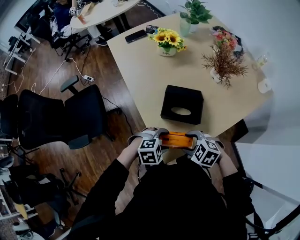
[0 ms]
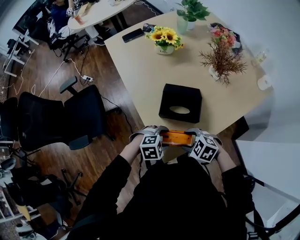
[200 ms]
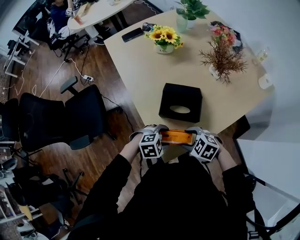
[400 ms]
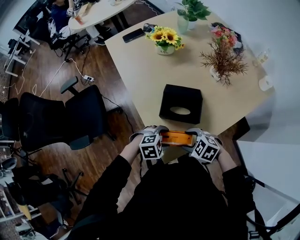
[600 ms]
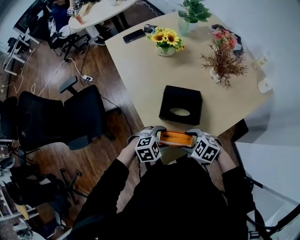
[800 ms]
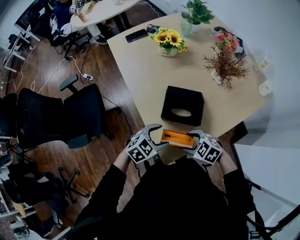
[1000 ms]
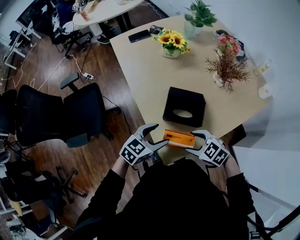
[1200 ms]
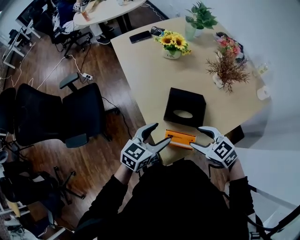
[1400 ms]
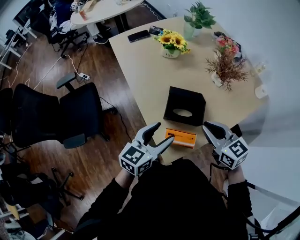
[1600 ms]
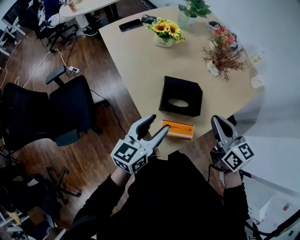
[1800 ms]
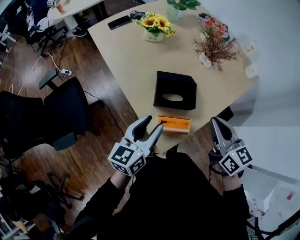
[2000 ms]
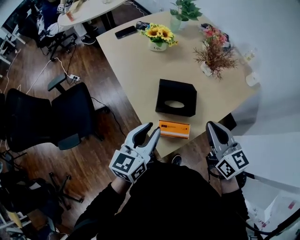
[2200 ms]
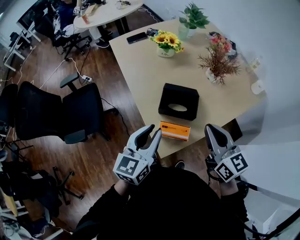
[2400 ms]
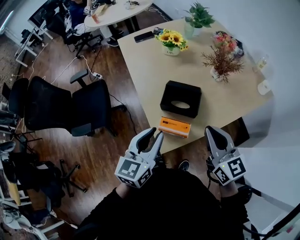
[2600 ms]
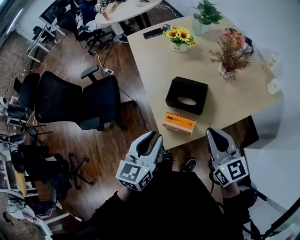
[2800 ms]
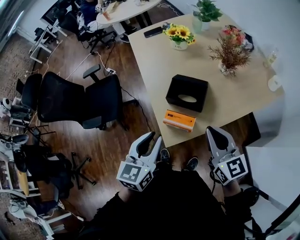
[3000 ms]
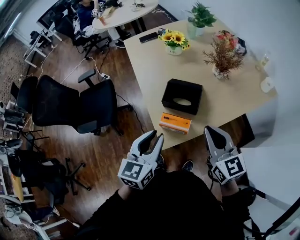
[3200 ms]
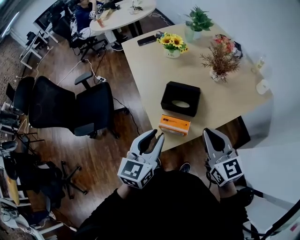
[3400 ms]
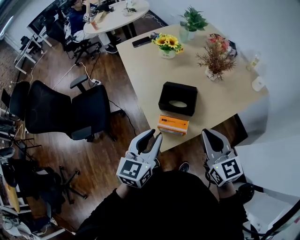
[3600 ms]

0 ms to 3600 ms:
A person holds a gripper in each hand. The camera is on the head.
0 ms to 1800 ms: The grippers both shift upward by some 20 cm. The right gripper angles its fingers upward, by roughly 40 degrees, and closes. The left gripper tilts its fingers roughly 50 degrees upward.
1800 ms to 3600 ms: The left gripper is displaced backward and upward by roughly 15 cm, turns by some 20 degrees, and closes. Meanwhile the right gripper is displaced backward by roughly 10 cm.

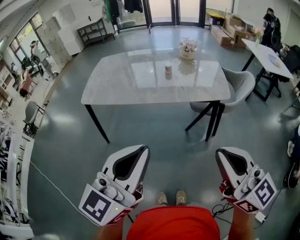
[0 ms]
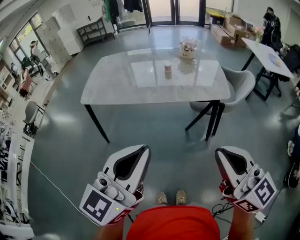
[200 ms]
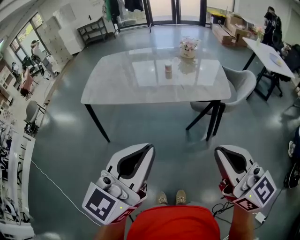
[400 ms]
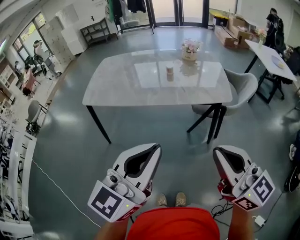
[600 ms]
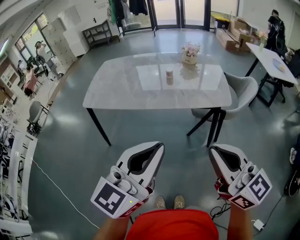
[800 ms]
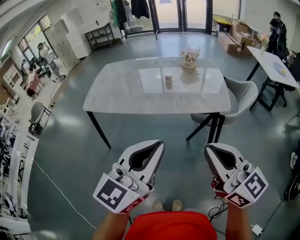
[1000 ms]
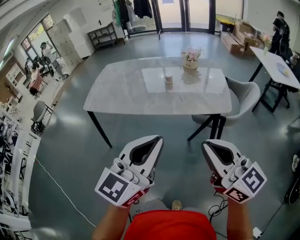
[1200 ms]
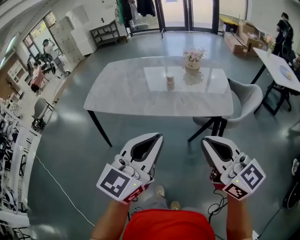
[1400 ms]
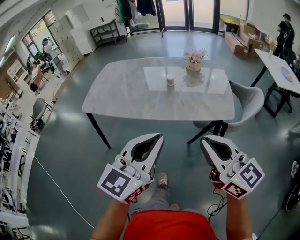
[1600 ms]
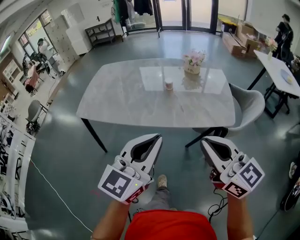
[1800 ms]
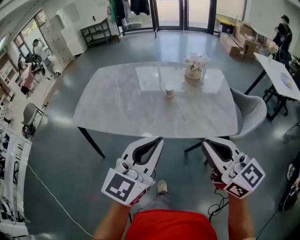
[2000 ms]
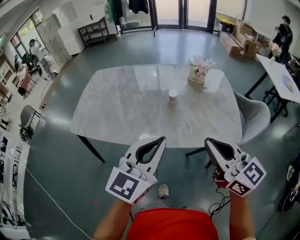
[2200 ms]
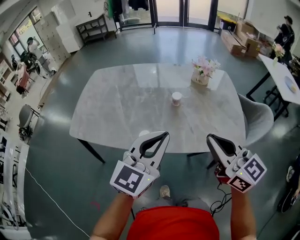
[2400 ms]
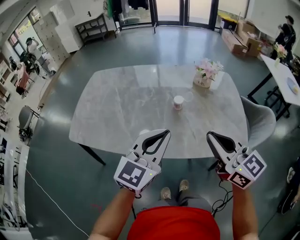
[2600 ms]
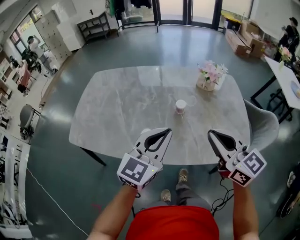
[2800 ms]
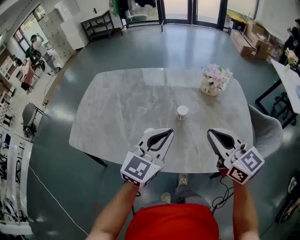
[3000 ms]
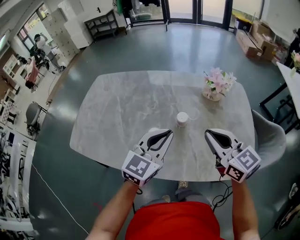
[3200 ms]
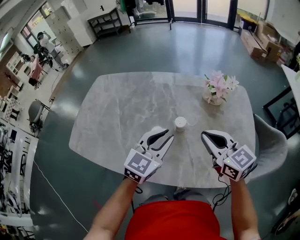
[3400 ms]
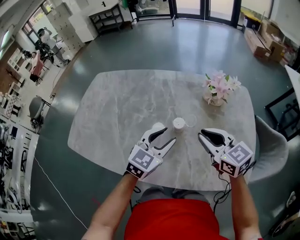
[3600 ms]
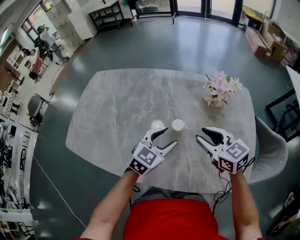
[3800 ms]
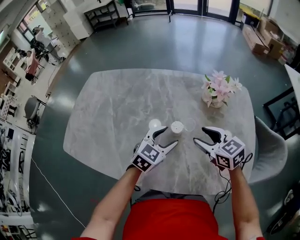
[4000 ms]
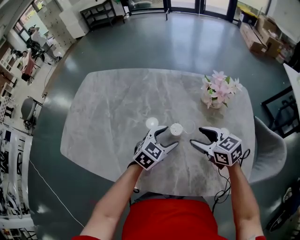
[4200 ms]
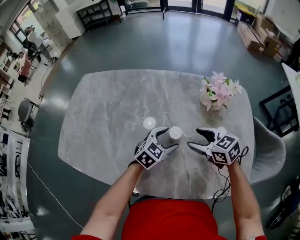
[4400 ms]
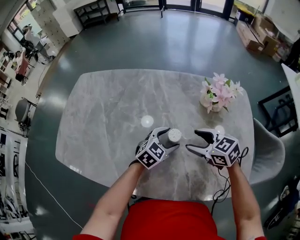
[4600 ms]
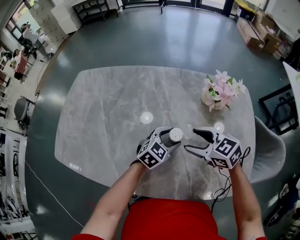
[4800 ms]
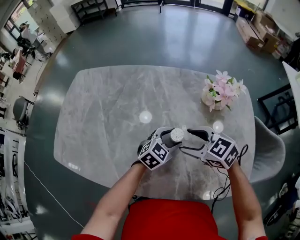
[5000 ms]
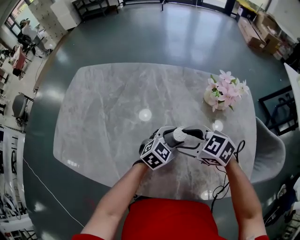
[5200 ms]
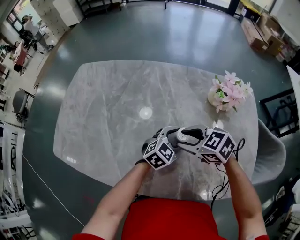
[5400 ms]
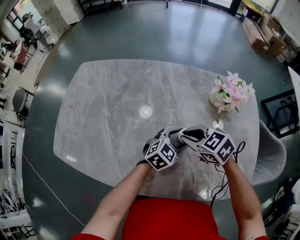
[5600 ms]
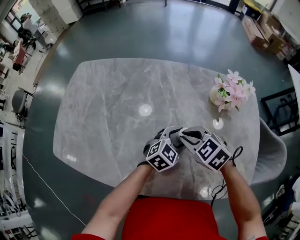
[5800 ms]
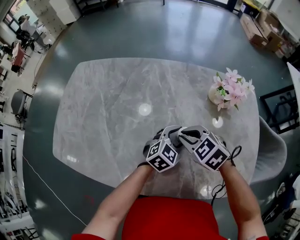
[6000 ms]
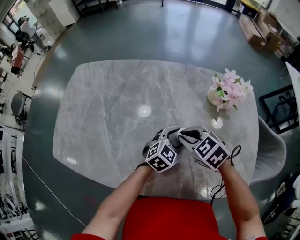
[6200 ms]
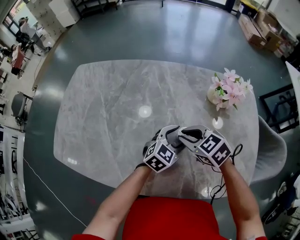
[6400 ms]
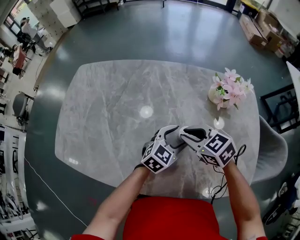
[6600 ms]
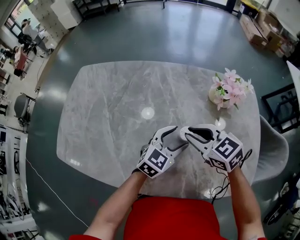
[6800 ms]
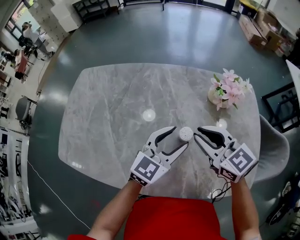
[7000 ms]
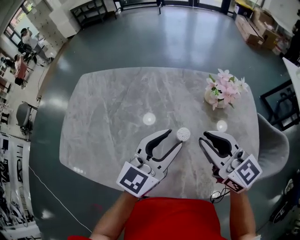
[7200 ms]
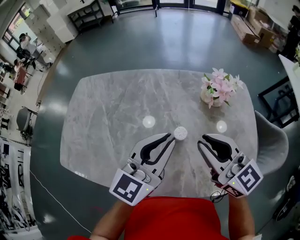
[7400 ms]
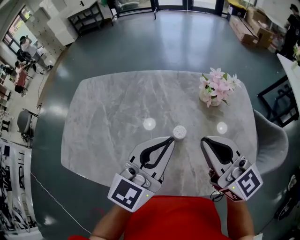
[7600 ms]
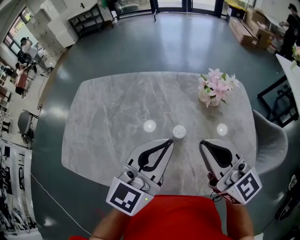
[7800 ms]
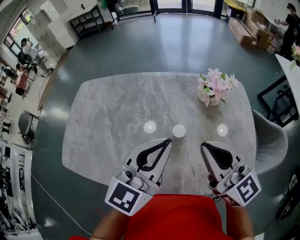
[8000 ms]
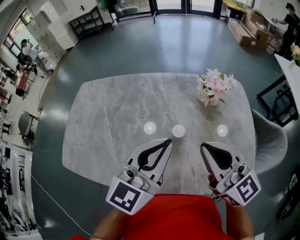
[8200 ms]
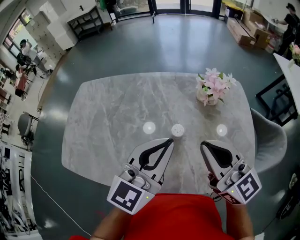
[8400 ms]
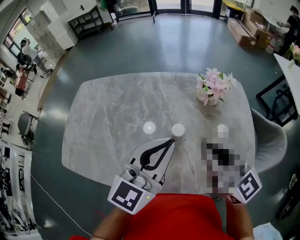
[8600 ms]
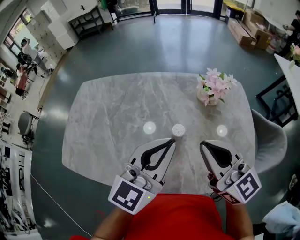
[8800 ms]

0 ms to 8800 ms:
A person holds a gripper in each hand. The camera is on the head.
0 ms to 1400 ms: The left gripper travels forward and to the right by about 15 cm, while the right gripper is displaced forward by approximately 10 cm.
1400 ms to 3000 ms: Both grippers are carried forward, some 40 cm.
3000 ms to 4400 ms: Both grippers travel together downward and forward, roughly 25 cm. The right gripper rotates roughly 30 degrees, and opens, while the left gripper tilts its fingers roughly 30 degrees downward, and opens up.
4400 ms to 5800 ms: The right gripper changes place by some 10 cm, changes its angle by some 20 degrees, and closes its fingers.
5800 ms to 7400 ms: Both grippers move upward, approximately 20 cm. The left gripper tips its fingers upward by roughly 30 degrees, and closes its fingers. The right gripper tips its fingers upward by some 50 degrees.
7400 ms to 8800 ms: The right gripper shifts by approximately 5 cm; the left gripper ends up about 5 cm from where it was.

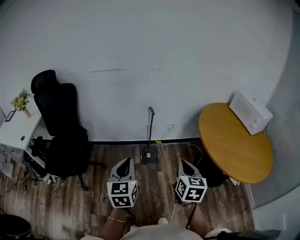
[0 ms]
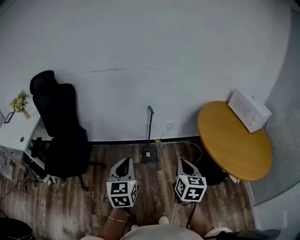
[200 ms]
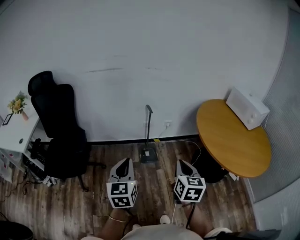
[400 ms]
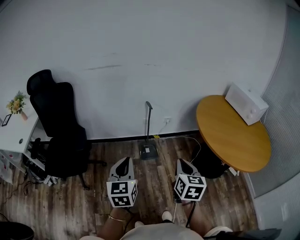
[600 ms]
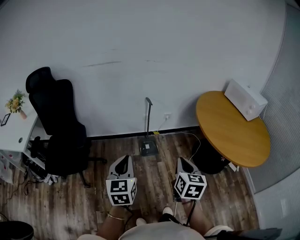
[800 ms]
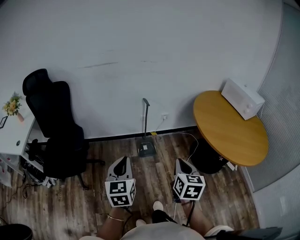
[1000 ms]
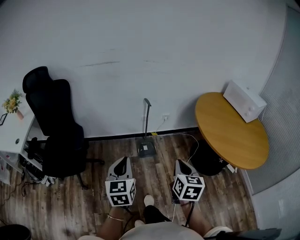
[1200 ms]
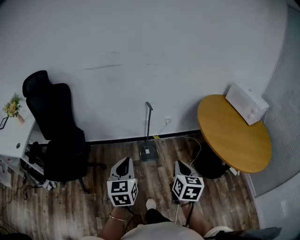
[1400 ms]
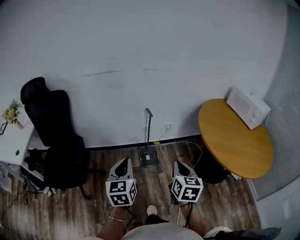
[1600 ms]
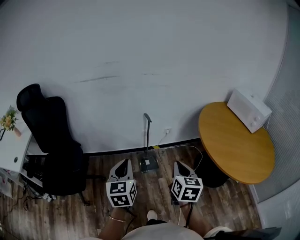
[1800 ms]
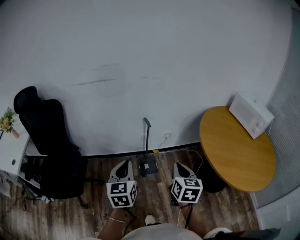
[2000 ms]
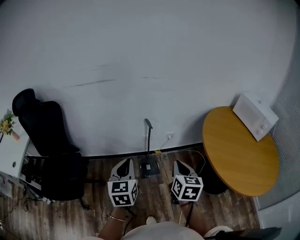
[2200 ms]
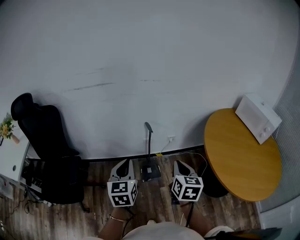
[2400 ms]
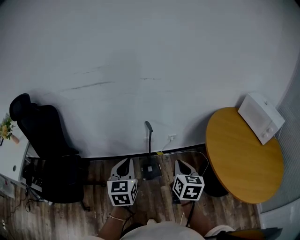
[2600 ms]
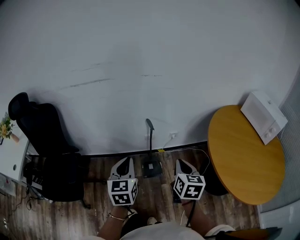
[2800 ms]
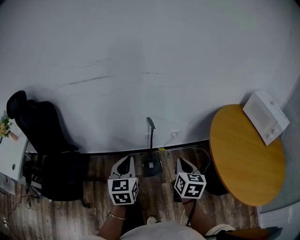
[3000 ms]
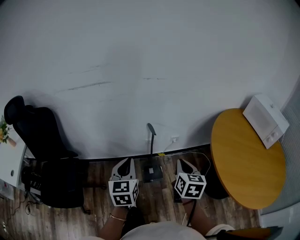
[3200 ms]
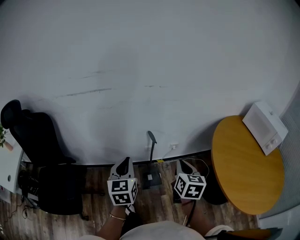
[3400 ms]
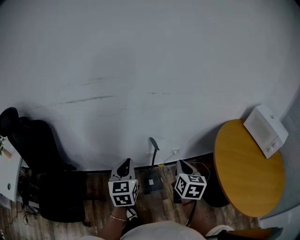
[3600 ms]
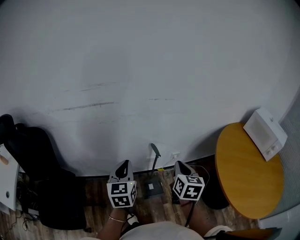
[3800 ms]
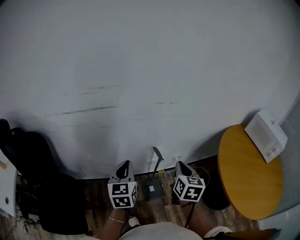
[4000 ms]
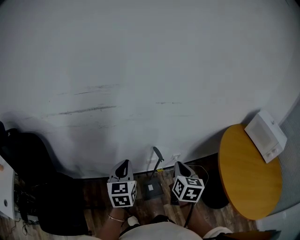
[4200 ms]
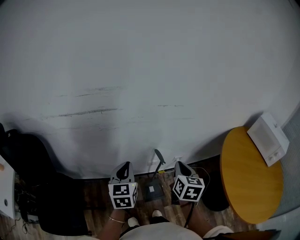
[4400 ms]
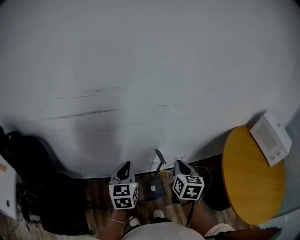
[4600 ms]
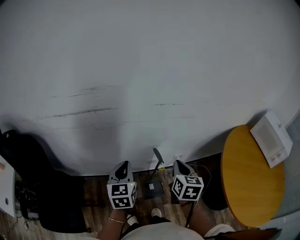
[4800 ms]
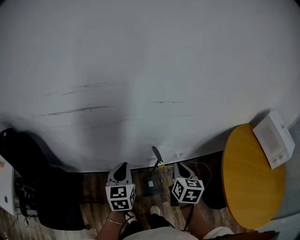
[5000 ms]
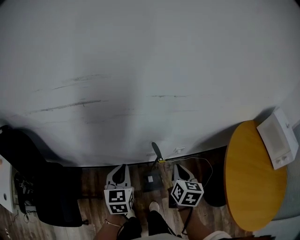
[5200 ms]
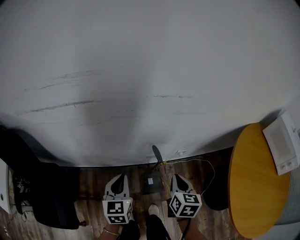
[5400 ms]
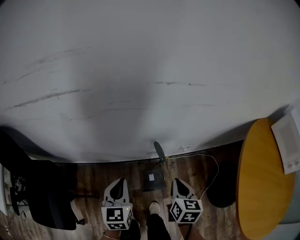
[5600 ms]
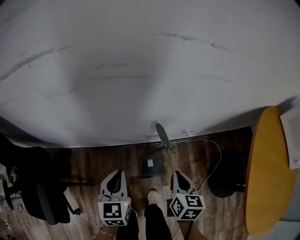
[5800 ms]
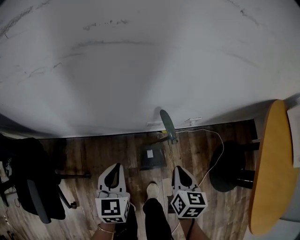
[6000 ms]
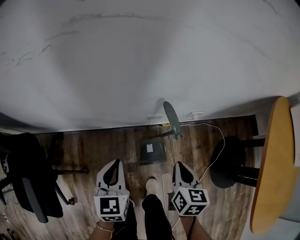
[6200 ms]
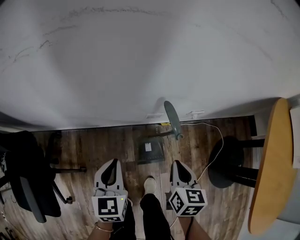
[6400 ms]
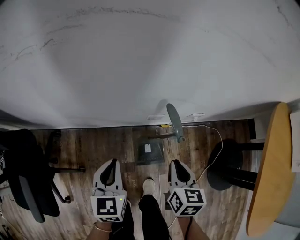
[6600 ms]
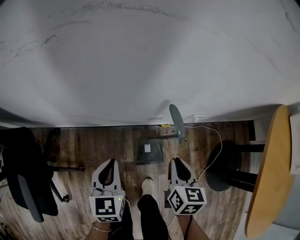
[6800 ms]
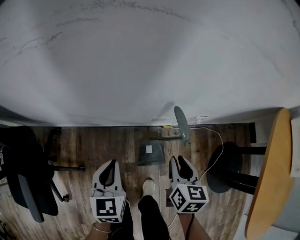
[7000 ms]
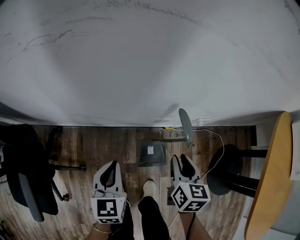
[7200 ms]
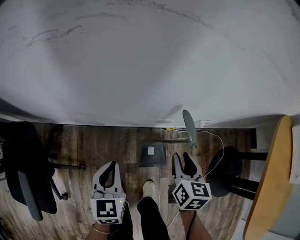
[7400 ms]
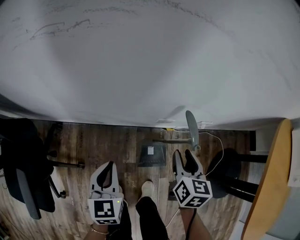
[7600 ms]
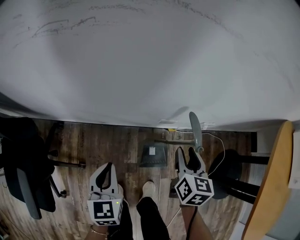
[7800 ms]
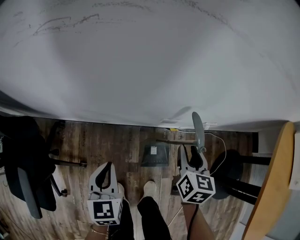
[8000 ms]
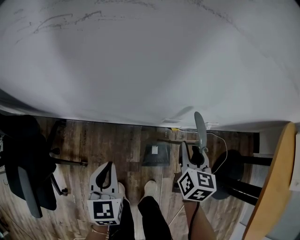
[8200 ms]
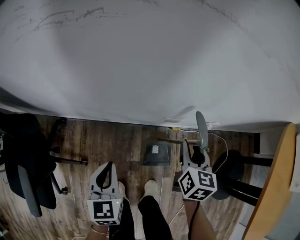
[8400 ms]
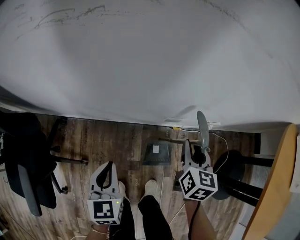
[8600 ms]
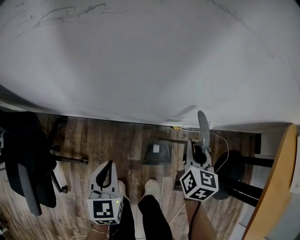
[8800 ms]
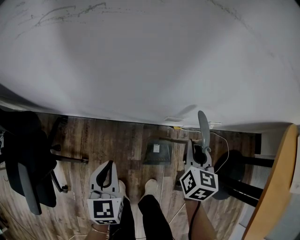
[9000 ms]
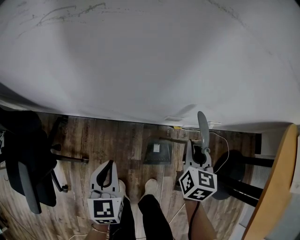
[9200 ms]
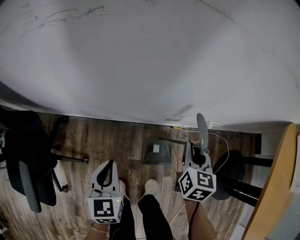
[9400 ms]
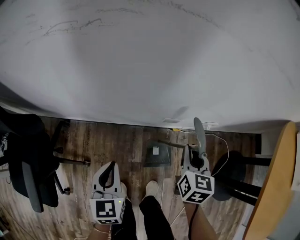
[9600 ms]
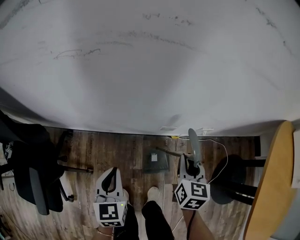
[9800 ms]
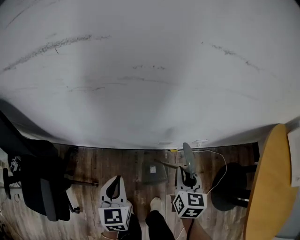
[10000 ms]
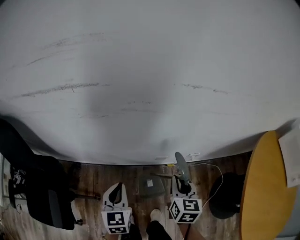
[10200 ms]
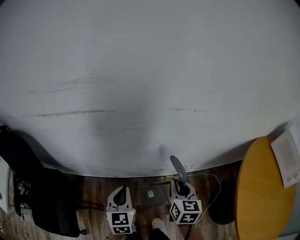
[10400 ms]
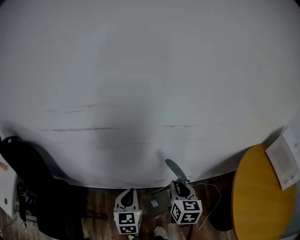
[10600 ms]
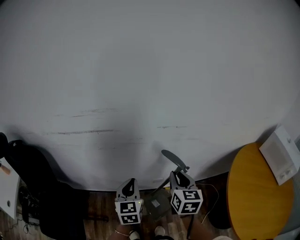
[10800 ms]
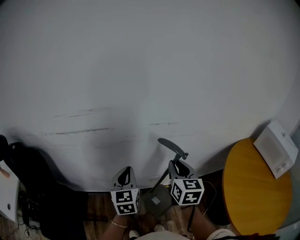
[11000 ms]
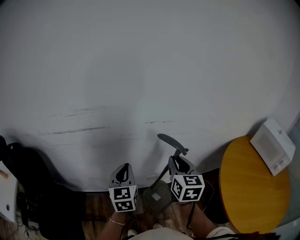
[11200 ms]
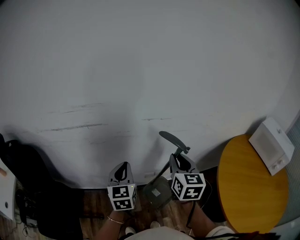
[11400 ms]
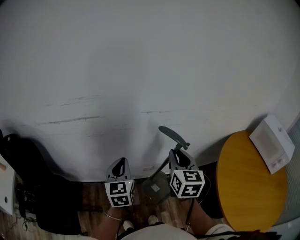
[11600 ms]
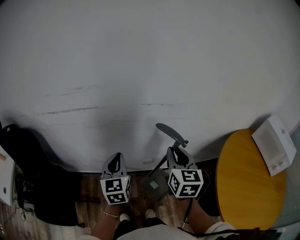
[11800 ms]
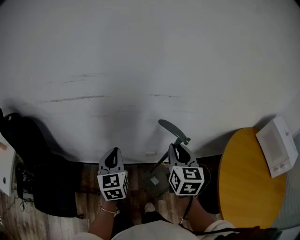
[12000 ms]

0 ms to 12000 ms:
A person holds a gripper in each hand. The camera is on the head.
0 ms to 1600 ms: The right gripper changes place by roughly 5 cm, while the left gripper heads forward, covering roughly 5 cm.
1600 ms to 3000 ms: Both grippers travel together forward, about 20 cm.
3000 ms to 4400 ms: The grippers both shift forward and to the left by about 25 cm.
4400 ms to 6000 ms: Both grippers move downward, roughly 30 cm.
6000 ms to 7600 ms: The right gripper is displaced forward by approximately 10 cm, and opens its fingers. The left gripper shifts some 5 cm to the left.
7600 ms to 9000 ms: The grippers stay close to where they were, moving slightly.
9000 ms to 10400 ms: Both grippers move upward, approximately 20 cm.
10400 ms to 12000 ms: The two grippers go some 15 cm upward.
